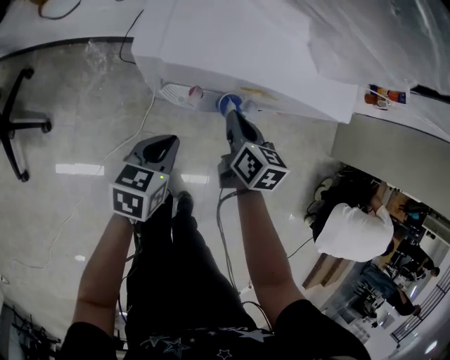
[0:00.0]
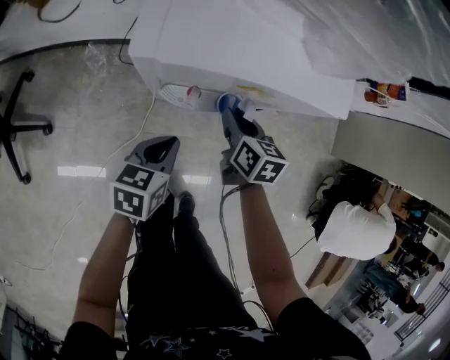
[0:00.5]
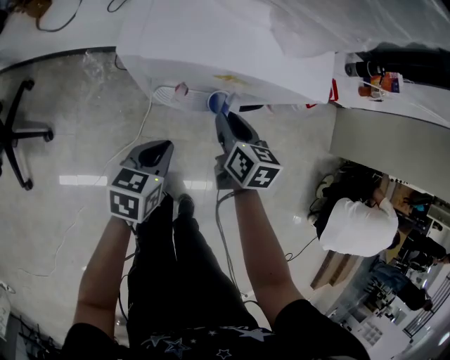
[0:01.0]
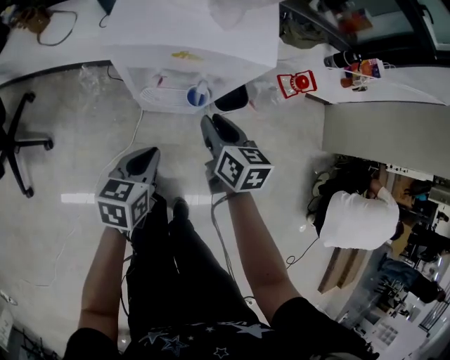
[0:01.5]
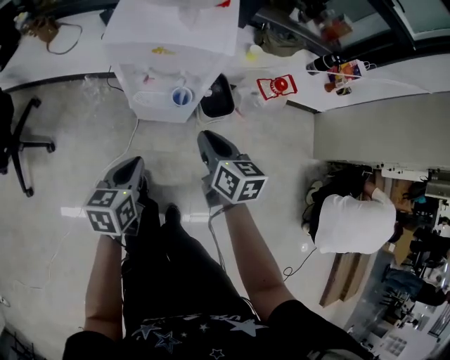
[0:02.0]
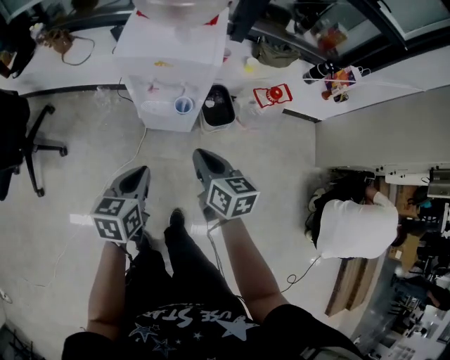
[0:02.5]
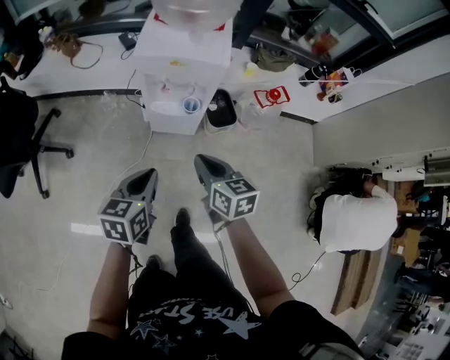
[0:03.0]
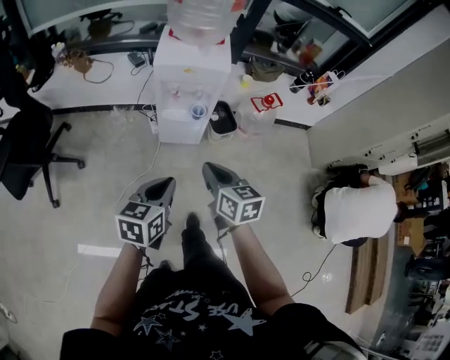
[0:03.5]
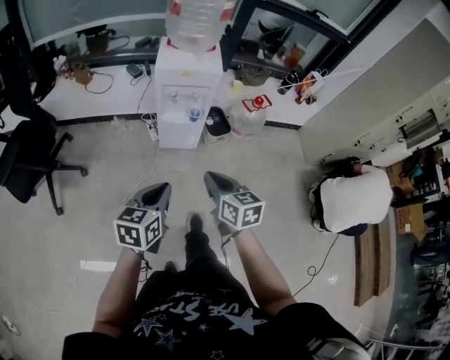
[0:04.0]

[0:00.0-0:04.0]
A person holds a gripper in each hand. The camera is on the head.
0:00.0 to 0:02.0: The left gripper shifts roughly 20 cm backward and upward; the right gripper goes some 25 cm upward, backward and to the right.
0:02.0 to 0:04.0: Both grippers travel together backward and upward, approximately 40 cm.

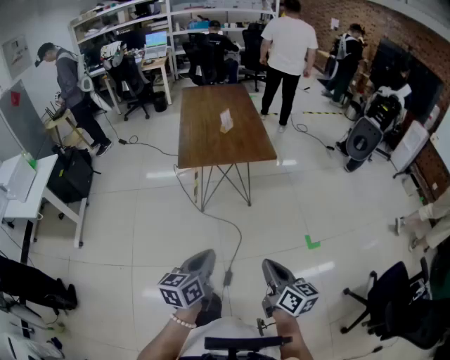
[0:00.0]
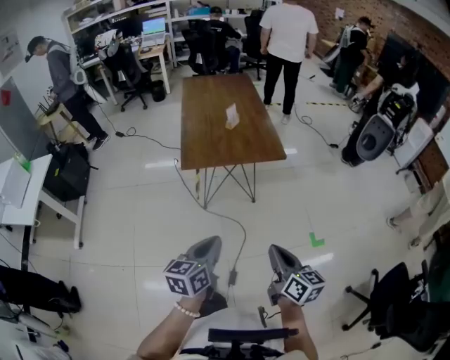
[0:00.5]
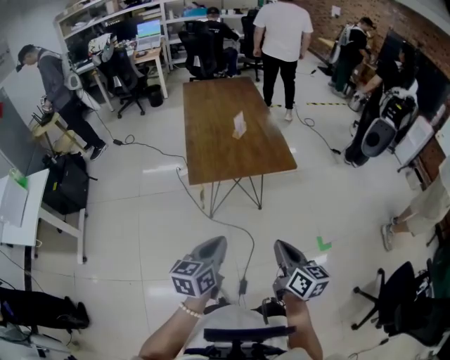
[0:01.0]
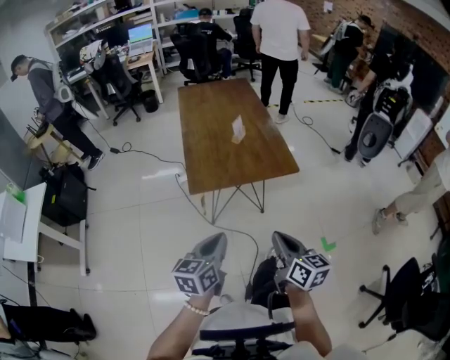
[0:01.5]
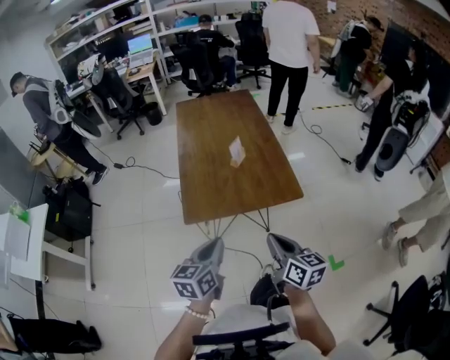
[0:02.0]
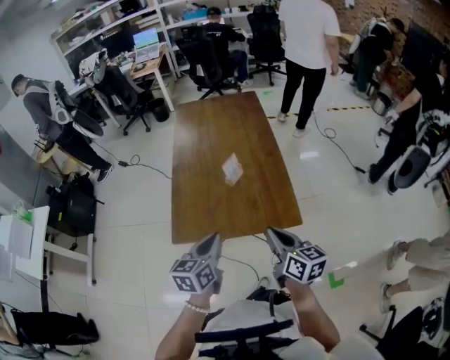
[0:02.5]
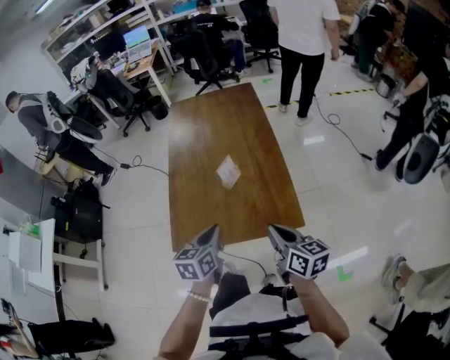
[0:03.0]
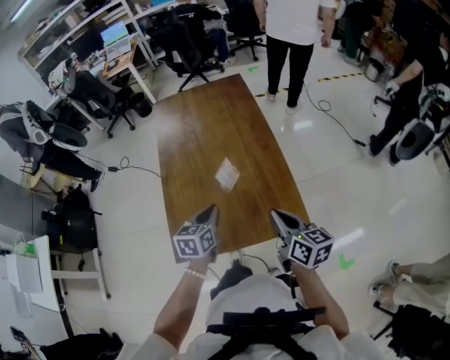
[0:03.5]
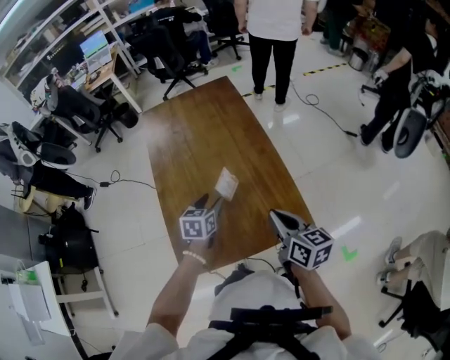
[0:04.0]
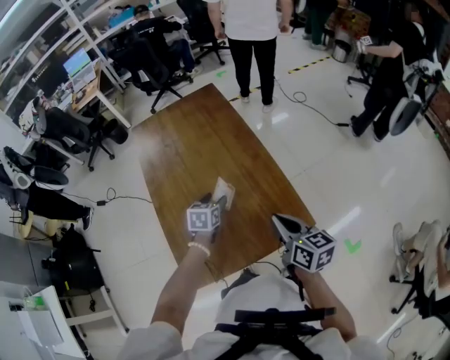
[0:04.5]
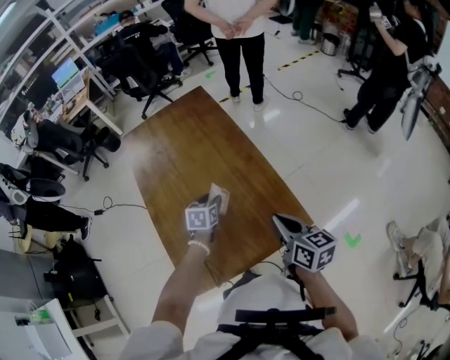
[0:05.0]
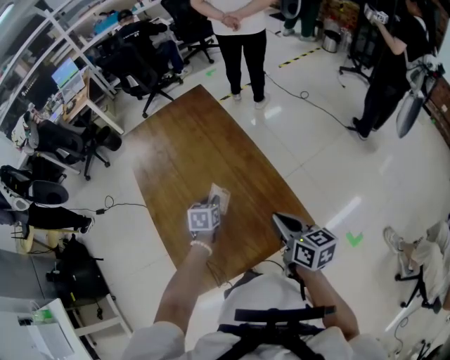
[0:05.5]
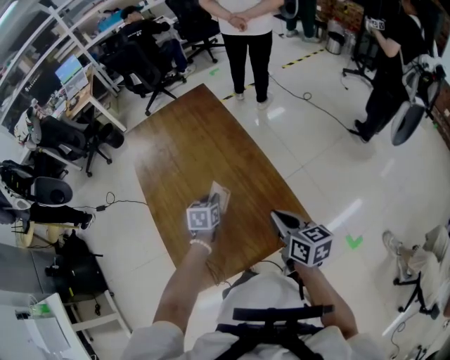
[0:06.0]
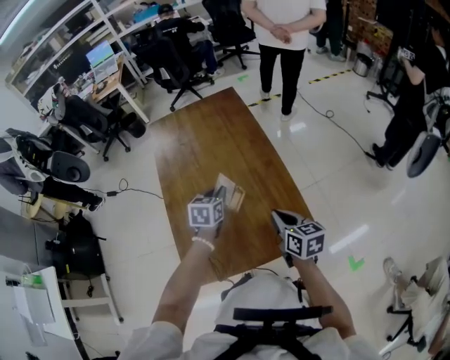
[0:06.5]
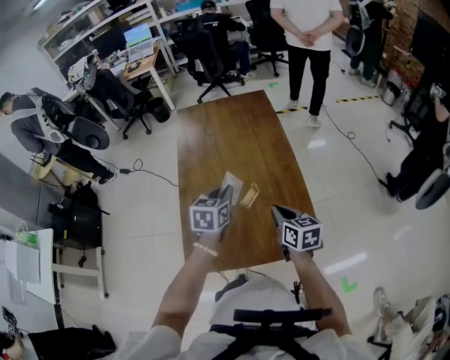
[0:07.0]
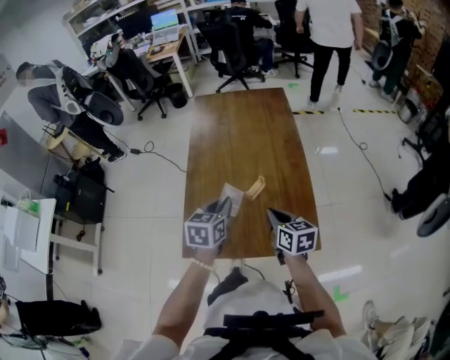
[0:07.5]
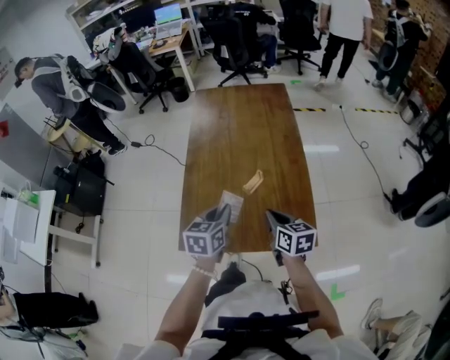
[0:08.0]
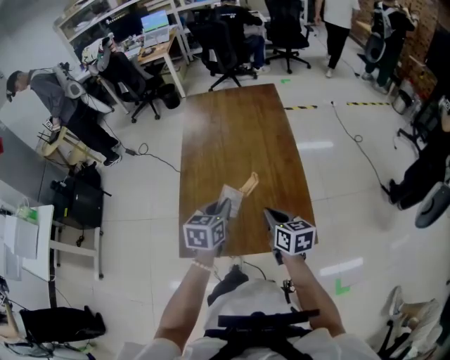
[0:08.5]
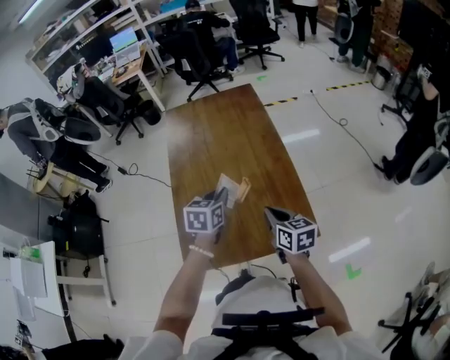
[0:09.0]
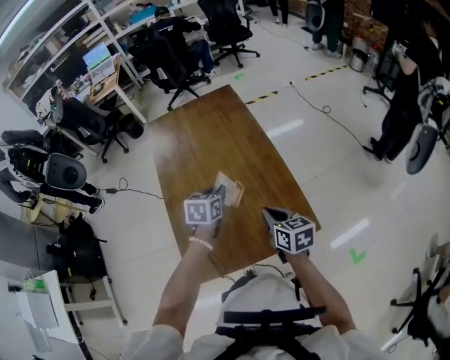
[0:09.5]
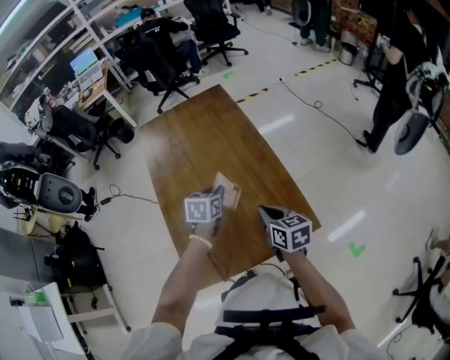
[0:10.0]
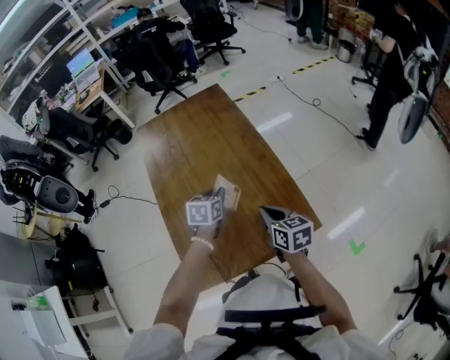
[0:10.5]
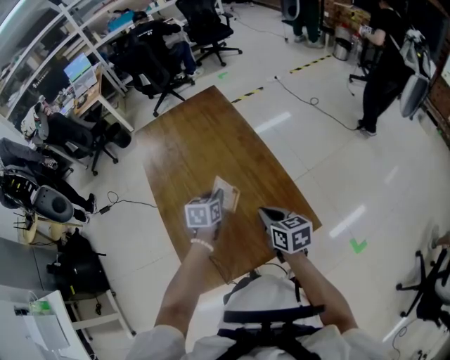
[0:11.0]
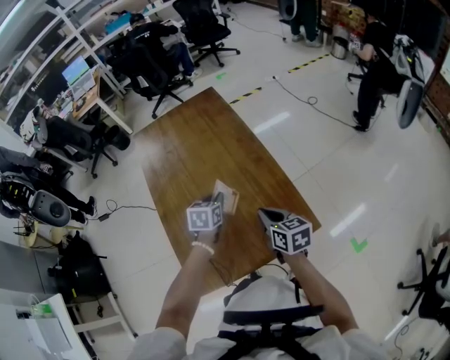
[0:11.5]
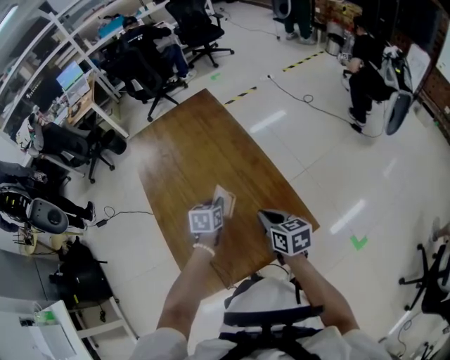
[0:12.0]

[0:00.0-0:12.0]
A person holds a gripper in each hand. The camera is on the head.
0:00.0 to 0:02.0: Both grippers move forward, some 40 cm.
0:02.0 to 0:04.0: The grippers both shift forward by approximately 40 cm. The left gripper turns by some 20 degrees, and opens up.
0:04.0 to 0:06.0: The right gripper ends up about 5 cm from where it was; the left gripper is displaced forward and to the right by some 10 cm, and closes its fingers.
0:06.0 to 0:08.0: The right gripper moves to the left, some 10 cm, and swivels approximately 20 degrees; the left gripper heads backward, upward and to the left, covering about 20 cm, and swivels roughly 30 degrees.
0:08.0 to 0:10.0: The left gripper heads forward, covering about 15 cm, and changes its angle by some 30 degrees.
0:10.0 to 0:12.0: The left gripper goes roughly 5 cm downward.

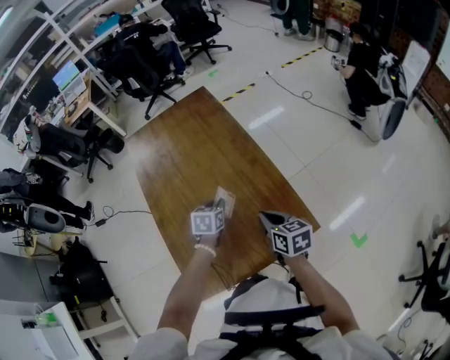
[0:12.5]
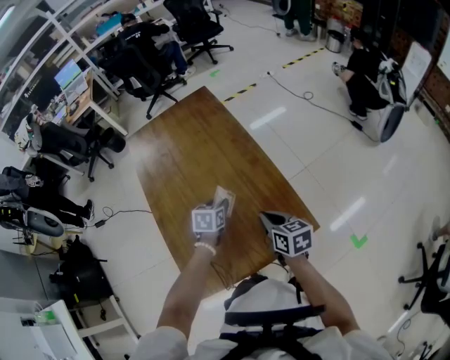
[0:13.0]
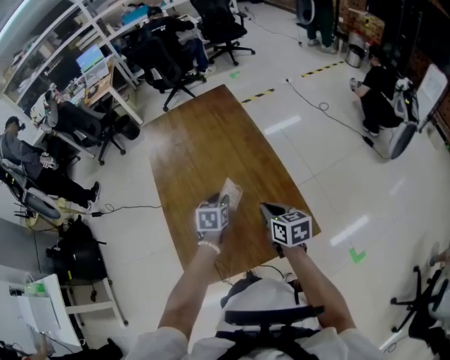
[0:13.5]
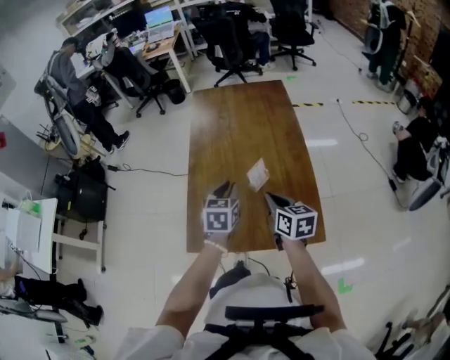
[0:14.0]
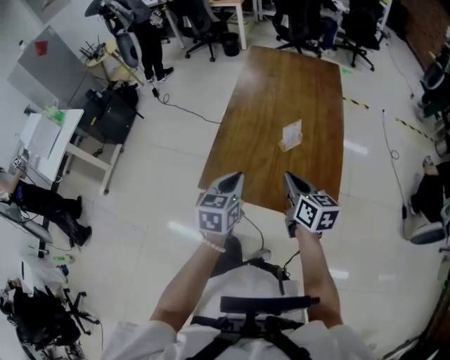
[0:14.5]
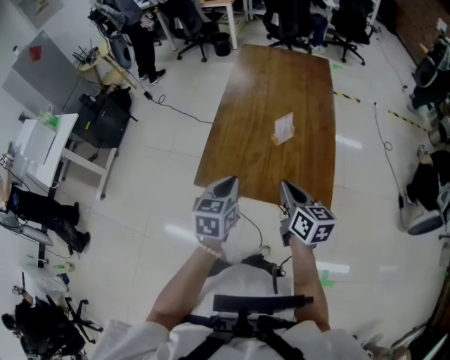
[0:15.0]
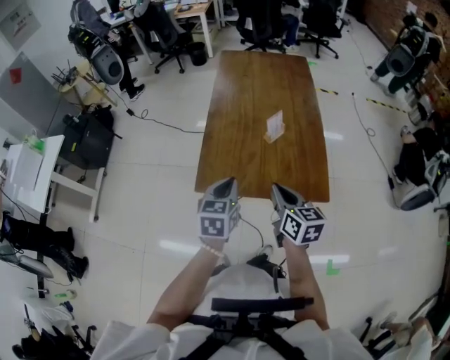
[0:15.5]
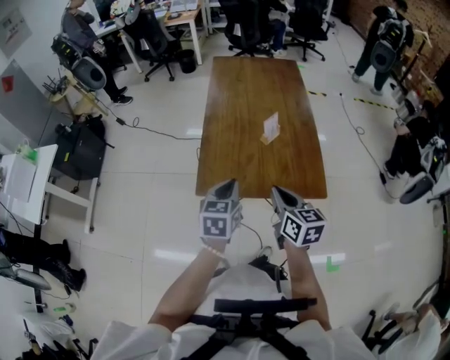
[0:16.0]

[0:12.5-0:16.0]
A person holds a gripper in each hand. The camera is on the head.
0:12.5 to 0:14.5: The left gripper changes place by about 35 cm, changes its angle by roughly 40 degrees, and opens, then closes again. Meanwhile the right gripper moves about 15 cm, and changes its angle by about 30 degrees.
0:14.5 to 0:16.0: The left gripper moves roughly 5 cm, while the right gripper goes roughly 10 cm backward and to the left.

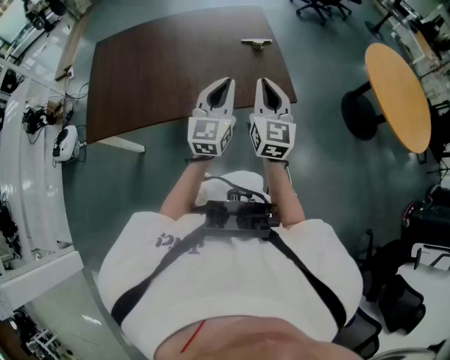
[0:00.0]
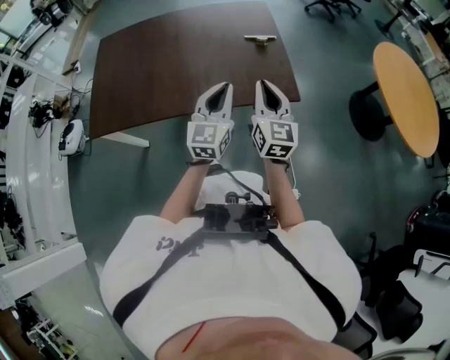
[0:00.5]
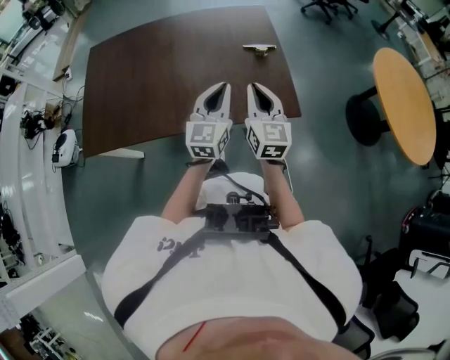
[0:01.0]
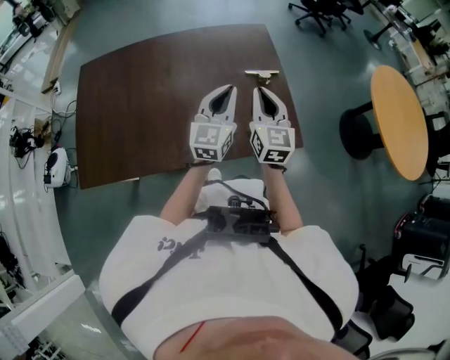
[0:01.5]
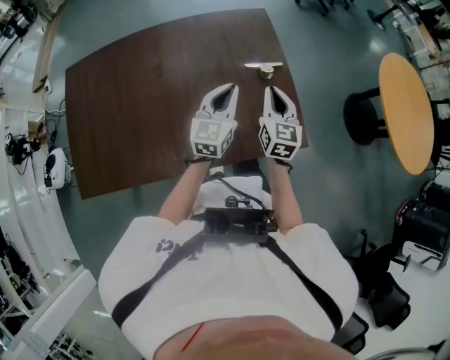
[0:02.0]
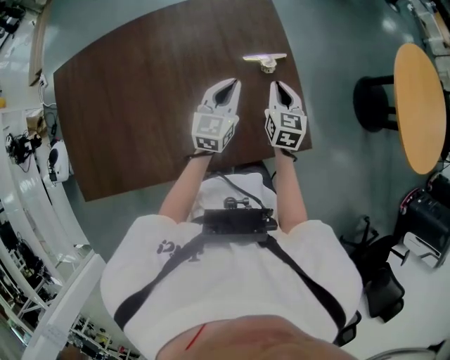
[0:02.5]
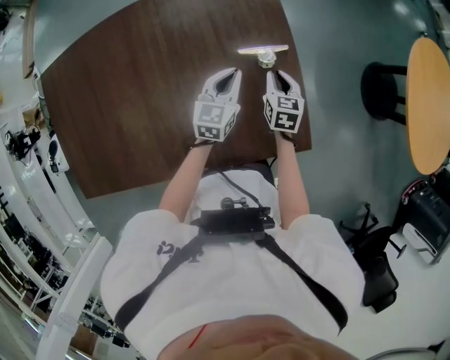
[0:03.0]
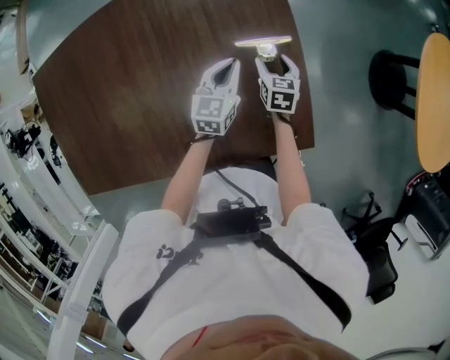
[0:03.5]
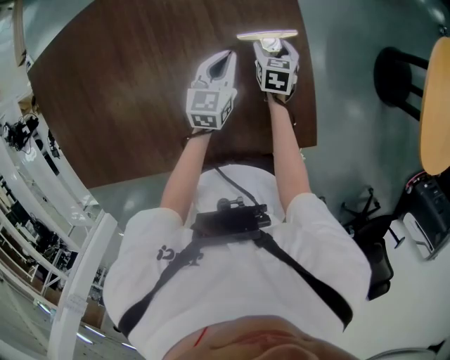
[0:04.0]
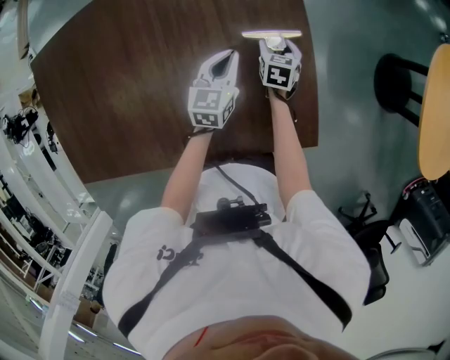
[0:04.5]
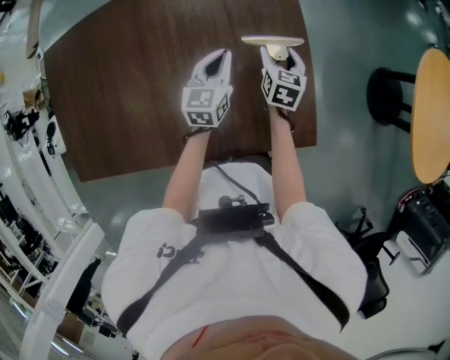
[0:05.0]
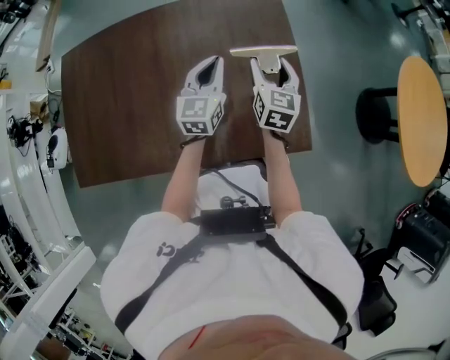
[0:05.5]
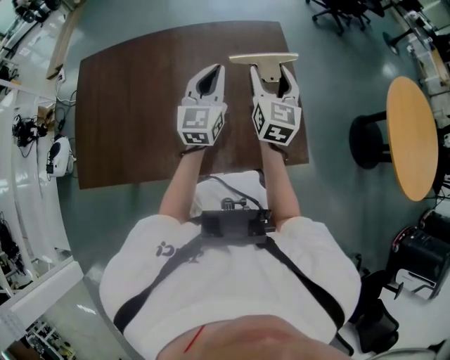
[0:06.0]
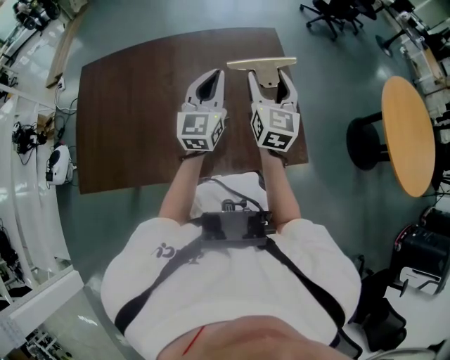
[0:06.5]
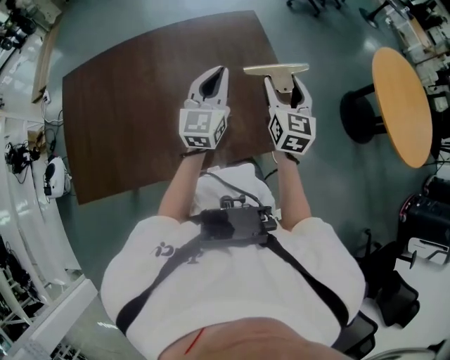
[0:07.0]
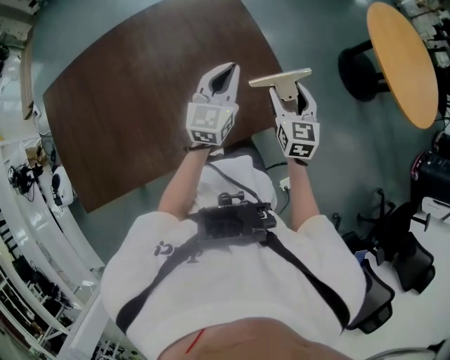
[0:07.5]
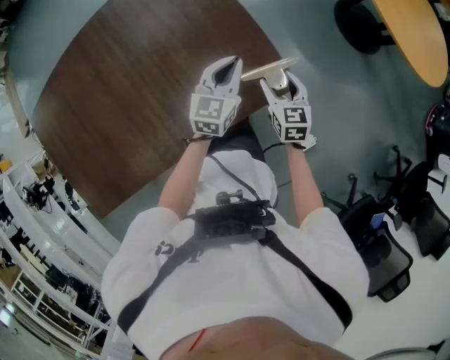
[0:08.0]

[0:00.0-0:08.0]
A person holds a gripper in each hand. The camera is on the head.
0:00.0 to 0:02.0: The left gripper moves forward, about 10 cm, while the right gripper goes about 10 cm forward, downward and to the right.
0:02.0 to 0:04.0: The left gripper is displaced downward by about 5 cm; the right gripper shifts some 15 cm downward, tips its fingers downward by roughly 30 degrees, and opens its fingers.
0:04.0 to 0:06.0: The left gripper moves upward, to the left and forward, some 20 cm, and changes its angle by approximately 30 degrees; the right gripper shifts some 30 cm upward and to the left, and points its fingers about 40 degrees further upward.
0:06.0 to 0:08.0: The right gripper moves downward, backward and to the right, some 30 cm, and rotates approximately 30 degrees; the left gripper travels to the right, downward and backward by some 20 cm, and swivels about 40 degrees.
